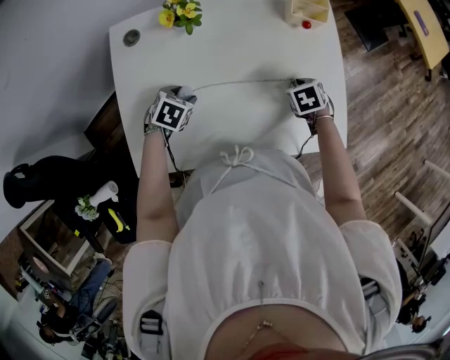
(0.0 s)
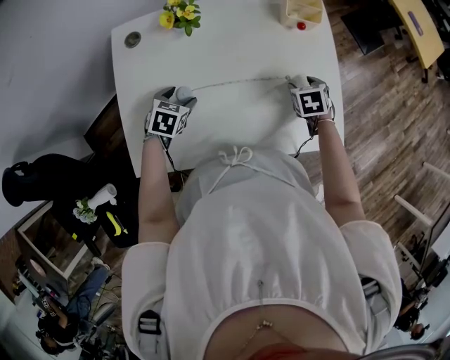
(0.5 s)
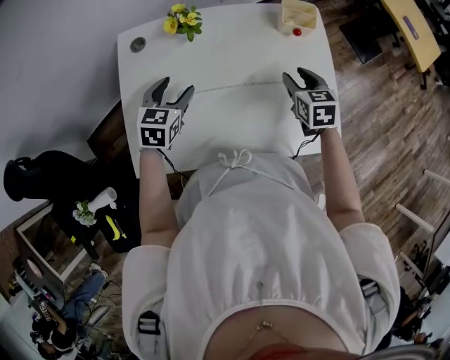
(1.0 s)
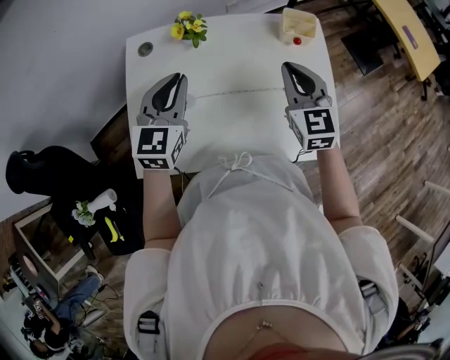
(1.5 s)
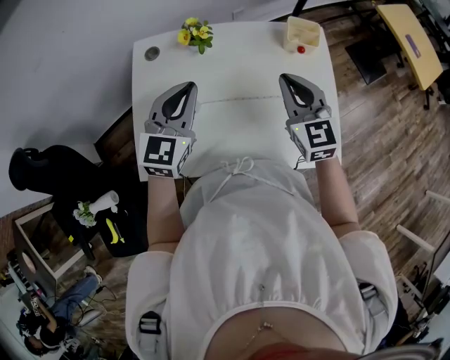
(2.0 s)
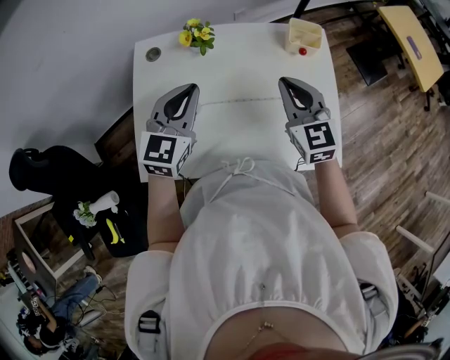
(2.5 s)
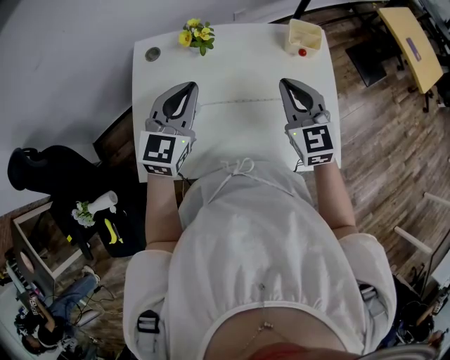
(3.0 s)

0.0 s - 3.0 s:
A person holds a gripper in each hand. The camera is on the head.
0.0 s - 1.5 s: The grippers both shift upward by some 25 cm. The right gripper tips its fingers upward by approximately 50 degrees, and opens, then closes again. Meanwhile the left gripper angles its fingers upward, by roughly 50 degrees, and closes up.
1.5 s - 3.0 s: The grippers move only a little.

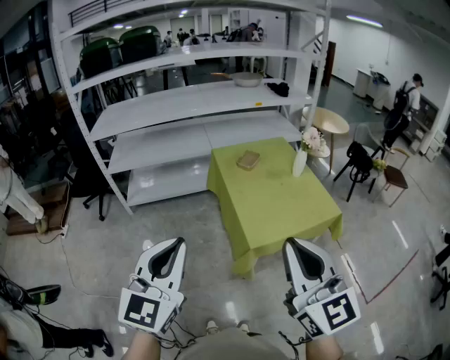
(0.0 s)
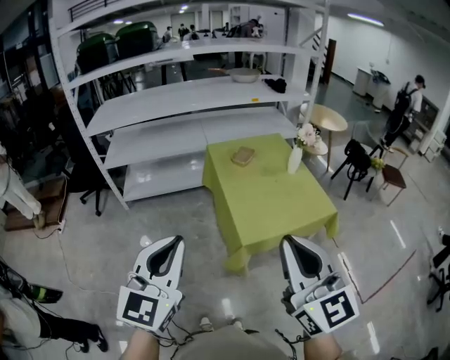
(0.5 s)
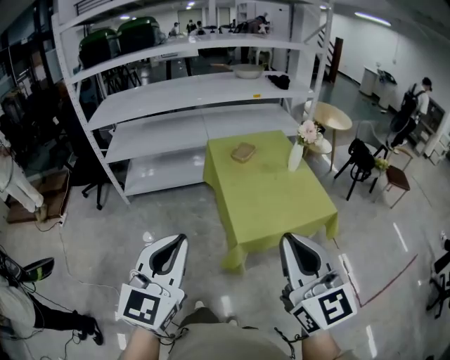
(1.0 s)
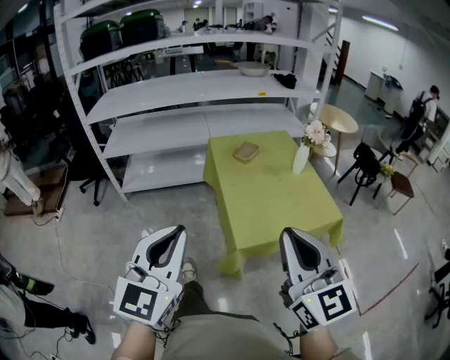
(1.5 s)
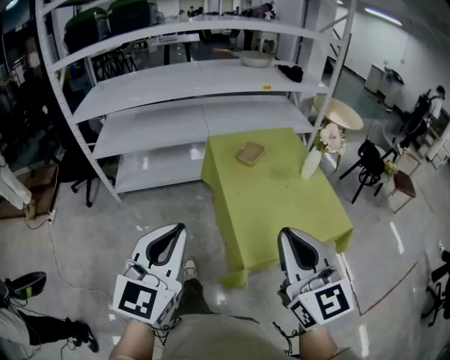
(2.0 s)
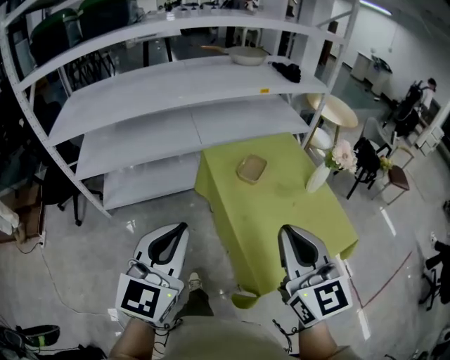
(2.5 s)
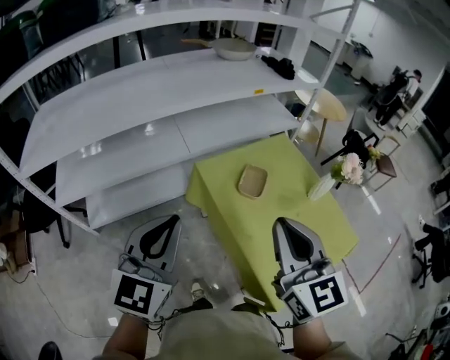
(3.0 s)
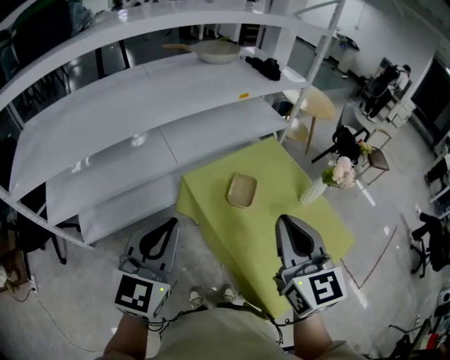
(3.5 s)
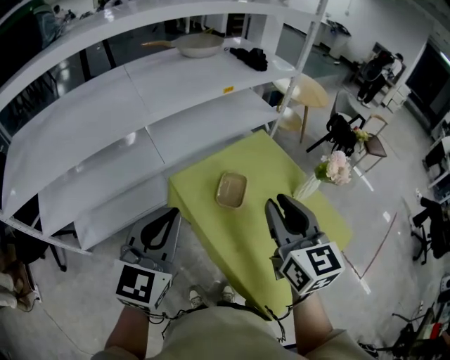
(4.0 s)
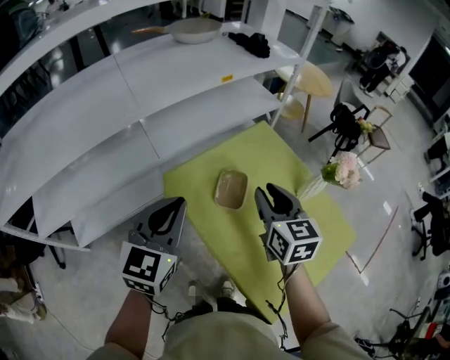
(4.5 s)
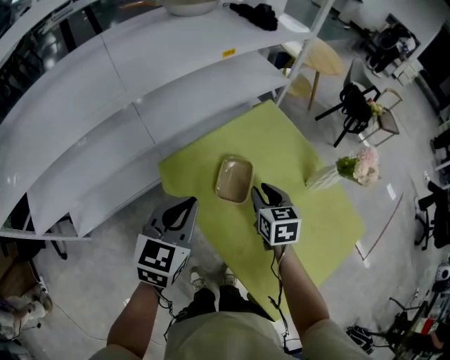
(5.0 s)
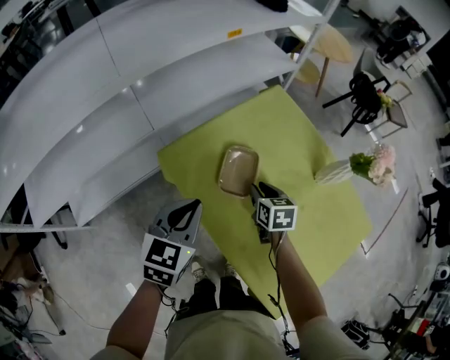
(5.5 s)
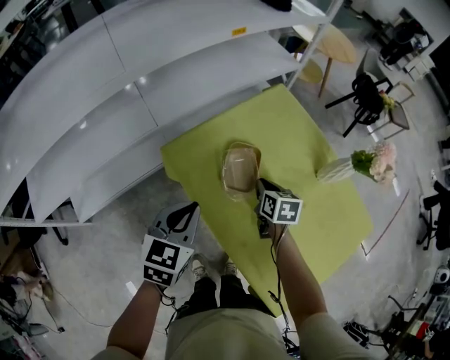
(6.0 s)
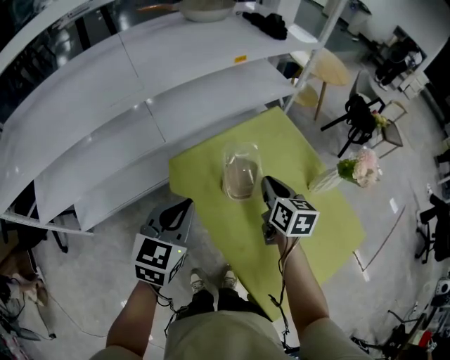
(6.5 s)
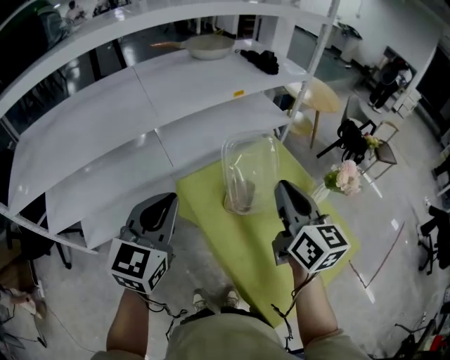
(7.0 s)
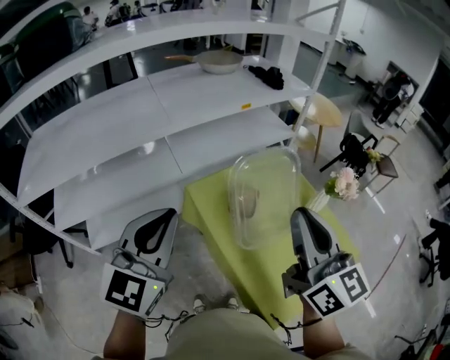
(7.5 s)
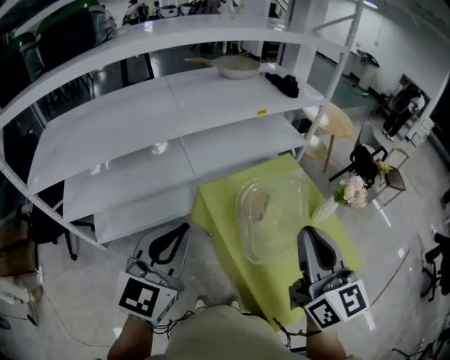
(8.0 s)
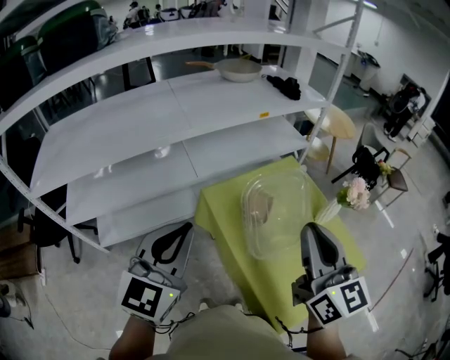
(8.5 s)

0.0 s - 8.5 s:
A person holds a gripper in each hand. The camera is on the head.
0.0 s - 2.0 s: The two grippers go some 20 cm forward and downward.
2.0 s - 4.0 s: Both grippers are carried forward, approximately 40 cm. The right gripper changes its angle by approximately 30 degrees, and opens; the left gripper turns by some 20 degrees.
4.0 s - 6.5 s: The left gripper goes approximately 20 cm downward and forward. Meanwhile the right gripper heads downward and forward, covering about 30 cm, and rotates some 30 degrees.
6.5 s - 8.5 s: Both grippers move upward and backward, some 30 cm. The right gripper points its fingers roughly 30 degrees further upward; the left gripper swivels some 20 degrees.

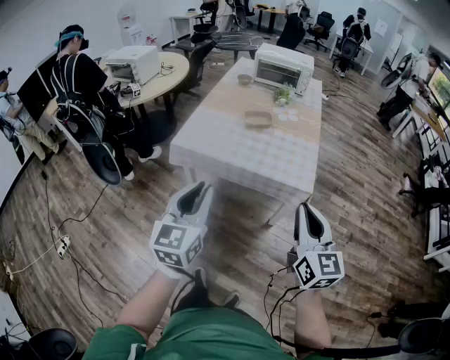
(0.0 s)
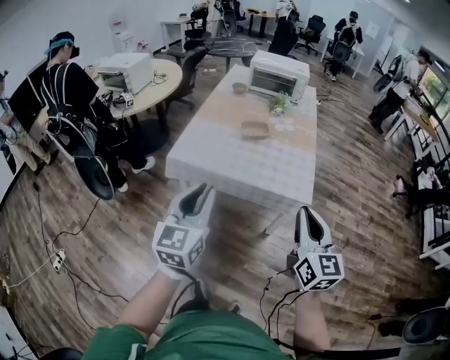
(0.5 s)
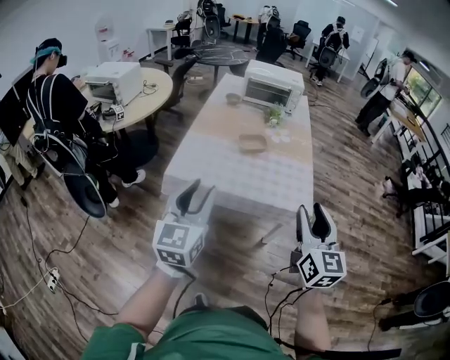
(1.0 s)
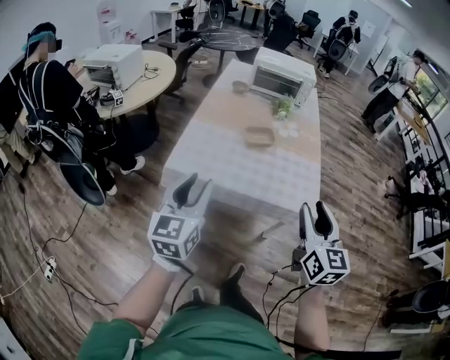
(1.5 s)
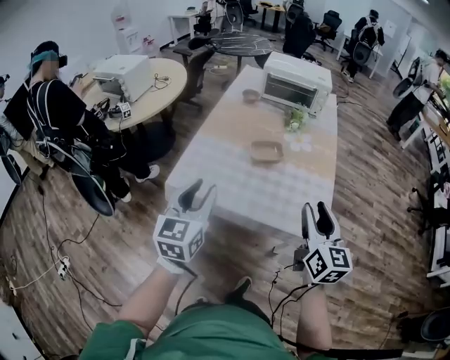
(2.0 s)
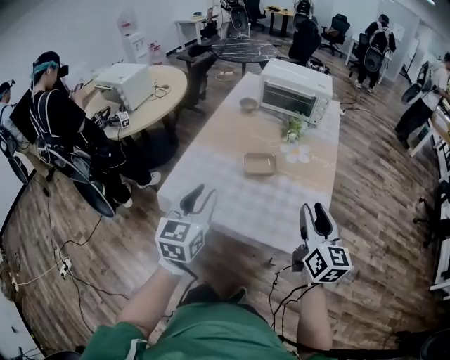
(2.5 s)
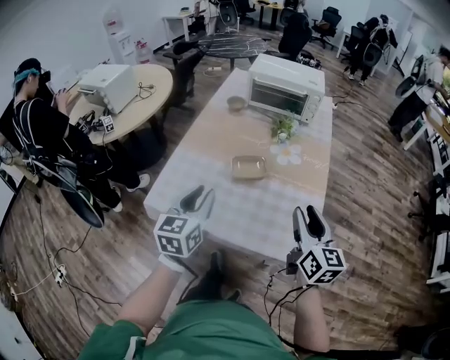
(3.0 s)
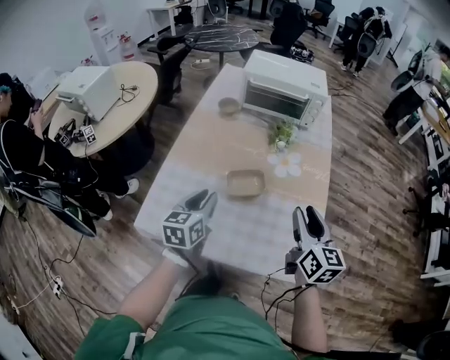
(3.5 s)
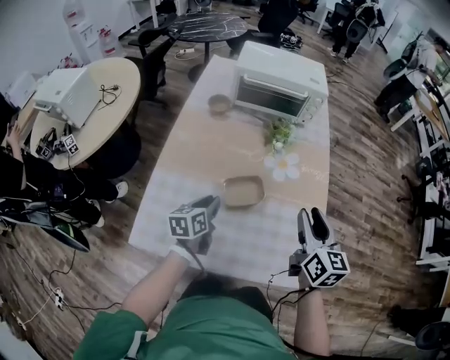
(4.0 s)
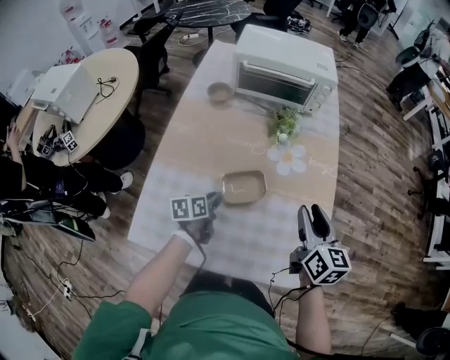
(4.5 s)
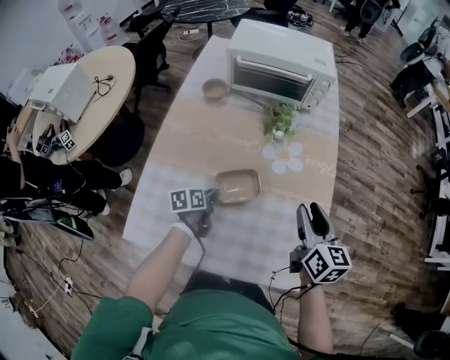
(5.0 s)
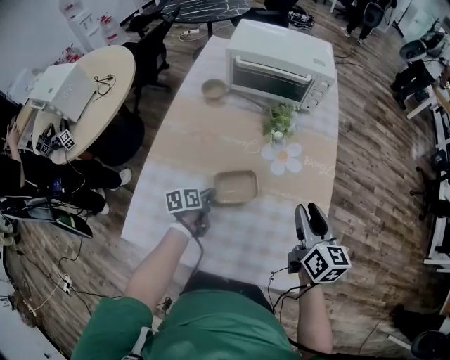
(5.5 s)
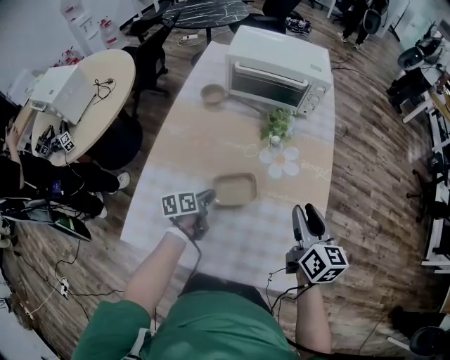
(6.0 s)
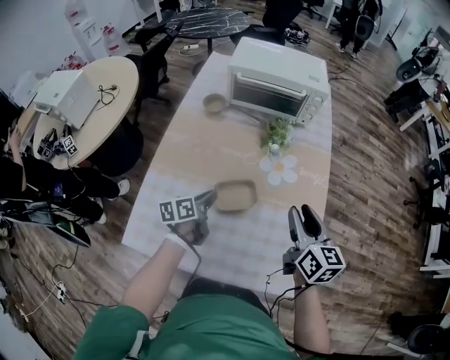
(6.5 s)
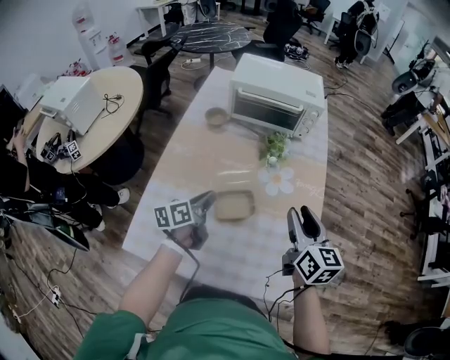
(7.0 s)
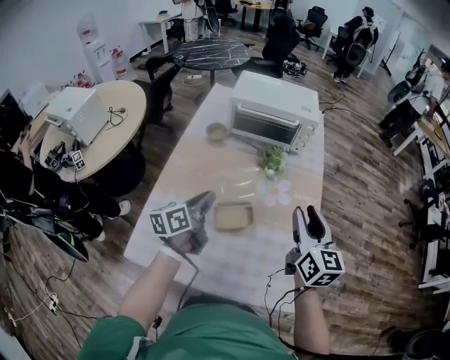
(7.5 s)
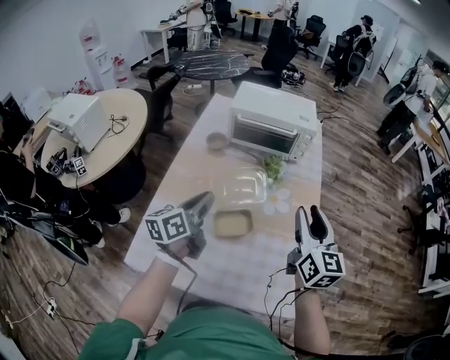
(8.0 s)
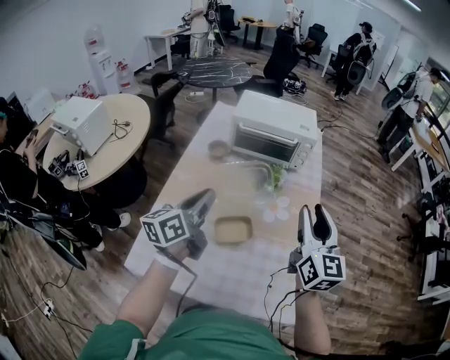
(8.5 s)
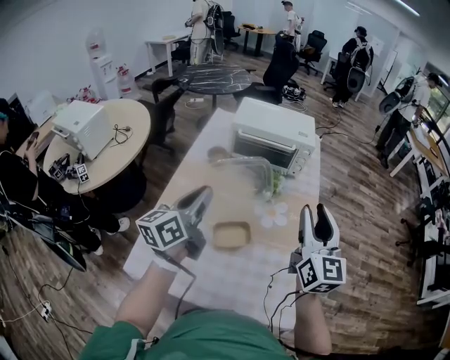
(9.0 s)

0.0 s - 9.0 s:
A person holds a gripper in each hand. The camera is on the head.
0.0 s - 2.0 s: The grippers both shift forward by some 30 cm. The right gripper opens up.
2.0 s - 4.5 s: The right gripper is displaced forward by approximately 40 cm. The left gripper moves forward and downward, roughly 50 cm, and changes its angle by roughly 50 degrees.
4.5 s - 7.0 s: The left gripper is displaced upward by about 15 cm, and swivels some 20 degrees; the right gripper goes some 5 cm upward.
7.0 s - 9.0 s: Both grippers travel together upward, some 20 cm. The right gripper swivels some 30 degrees. The left gripper changes its angle by roughly 30 degrees.

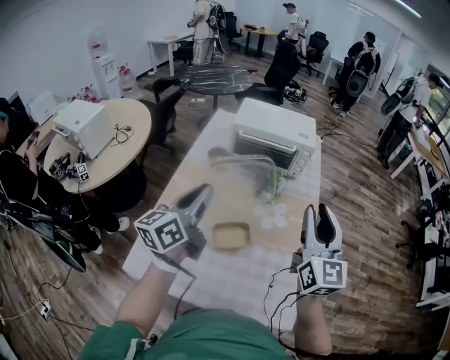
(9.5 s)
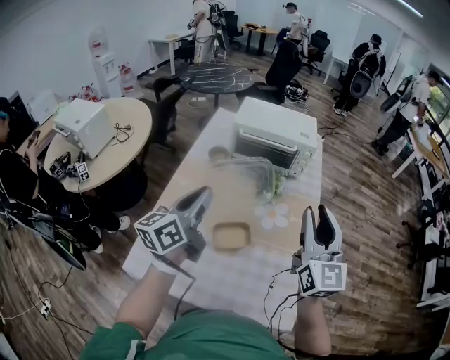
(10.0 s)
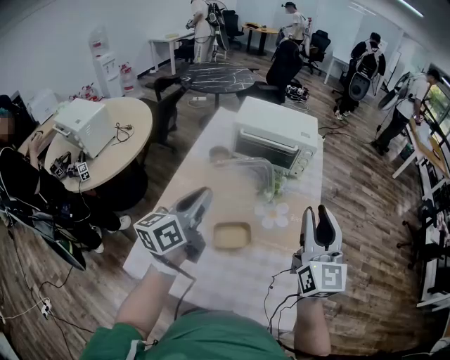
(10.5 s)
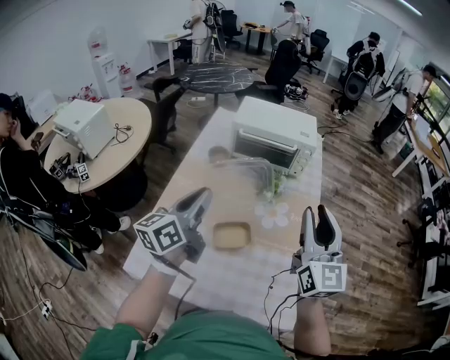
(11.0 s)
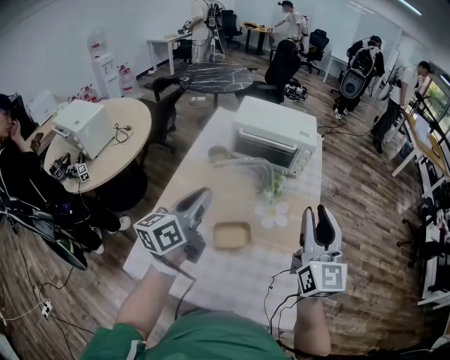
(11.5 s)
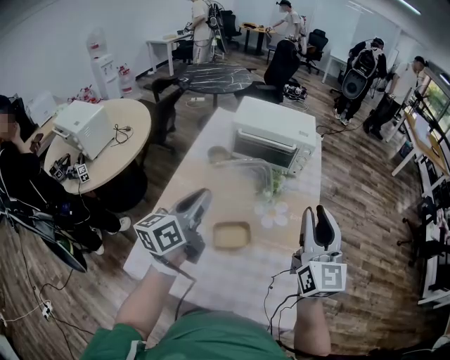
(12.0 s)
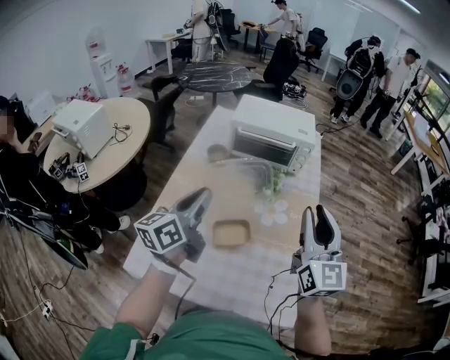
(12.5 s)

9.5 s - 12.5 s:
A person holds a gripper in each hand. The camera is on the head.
9.5 s - 11.0 s: The grippers move only a little.
11.0 s - 12.5 s: Neither gripper changes place.

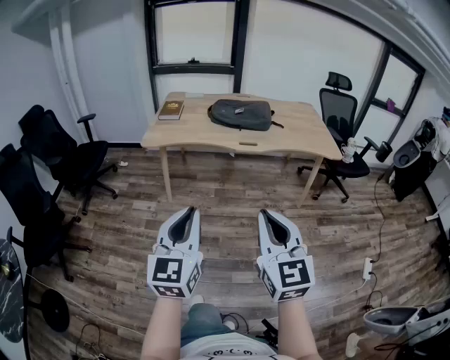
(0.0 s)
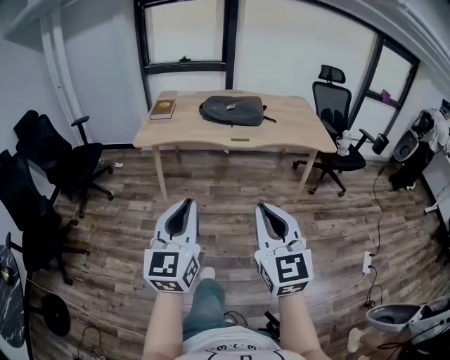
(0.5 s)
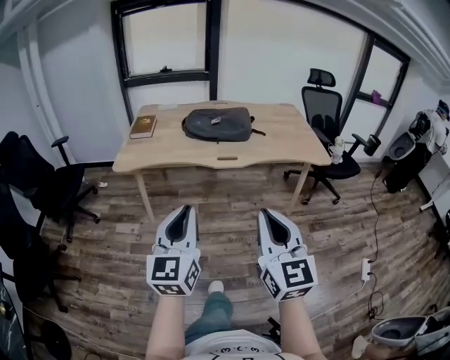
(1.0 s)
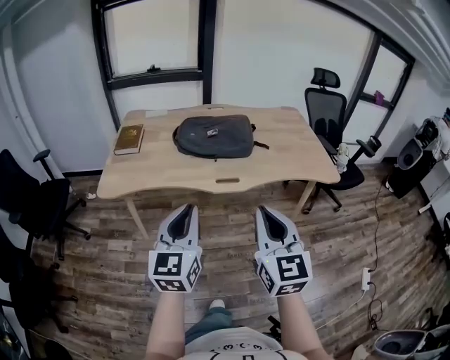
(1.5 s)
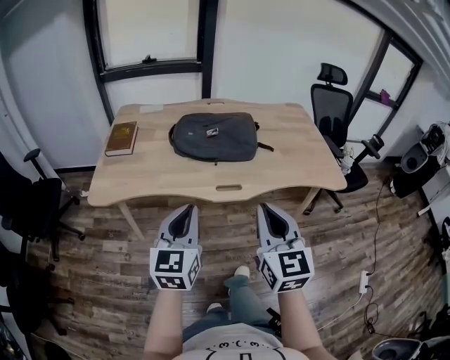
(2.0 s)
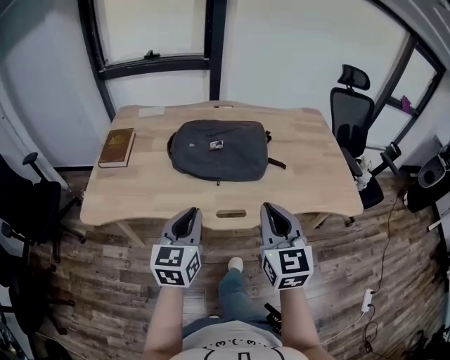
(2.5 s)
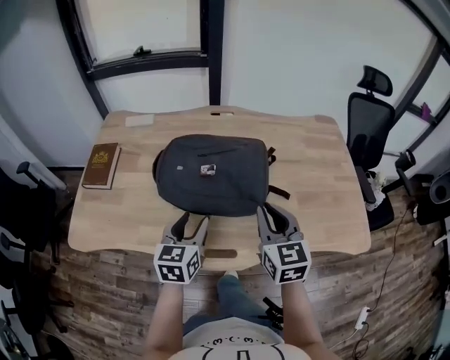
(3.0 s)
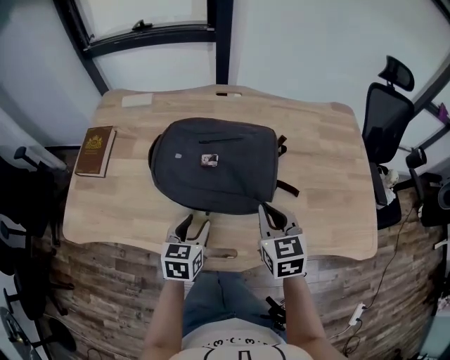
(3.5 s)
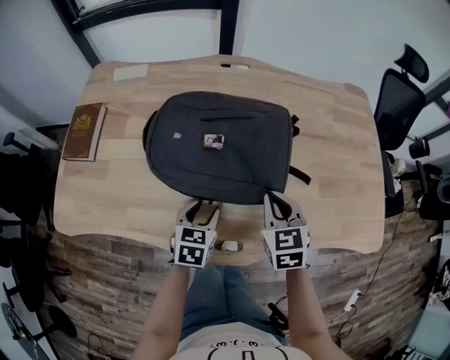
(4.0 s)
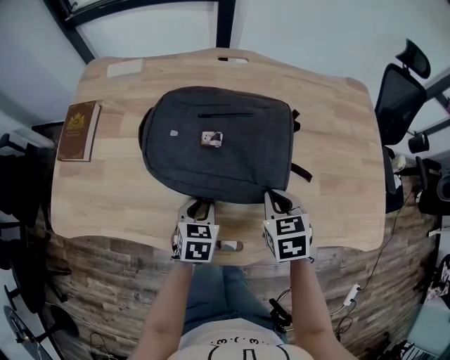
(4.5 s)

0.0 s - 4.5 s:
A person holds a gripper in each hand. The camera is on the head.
0.0 s - 2.0 s: The two grippers travel together, forward, about 40 cm.
2.0 s - 4.5 s: Both grippers travel together forward and downward, approximately 50 cm. The left gripper tips its fingers downward by approximately 40 degrees, and opens and closes again. The right gripper tilts its fingers approximately 40 degrees downward.
